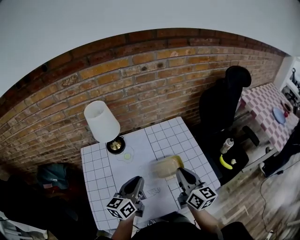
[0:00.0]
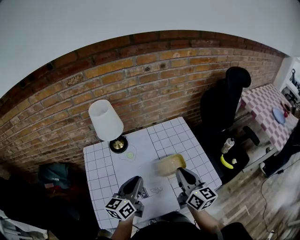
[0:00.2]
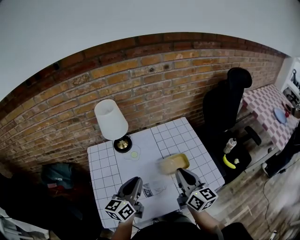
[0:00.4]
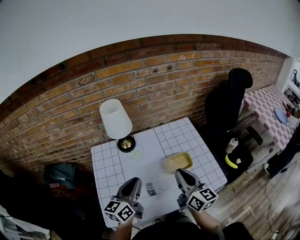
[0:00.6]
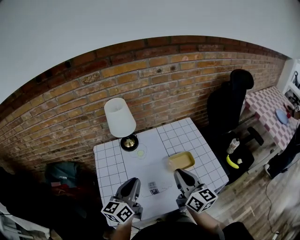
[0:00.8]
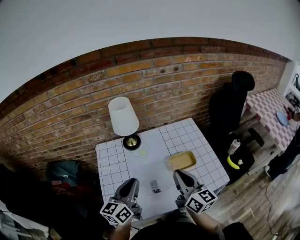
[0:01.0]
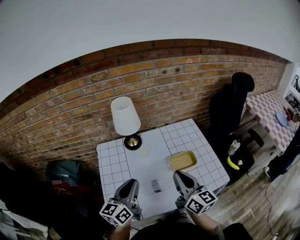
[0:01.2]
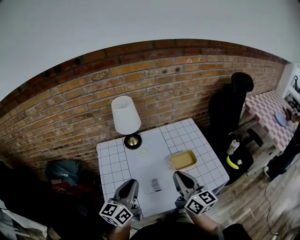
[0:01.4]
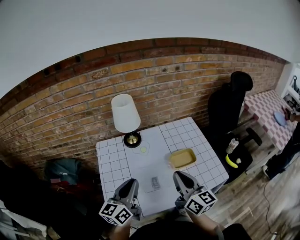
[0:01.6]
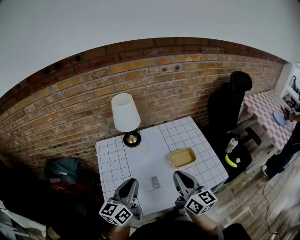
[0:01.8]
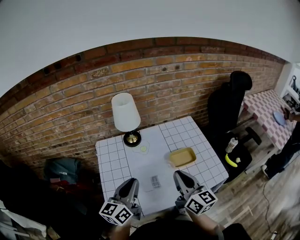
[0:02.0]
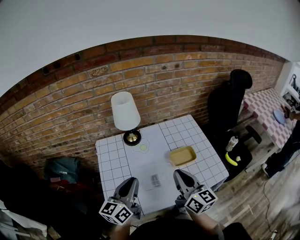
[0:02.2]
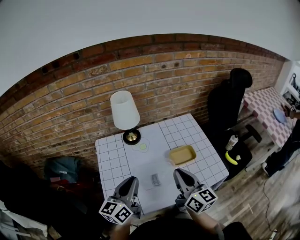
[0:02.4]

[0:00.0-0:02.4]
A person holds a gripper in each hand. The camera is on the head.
0:00.0 to 0:01.2: The left gripper travels to the left, backward and upward by about 15 cm; the right gripper is displaced to the left and backward by some 15 cm.
0:01.2 to 0:02.4: The grippers move only a little.

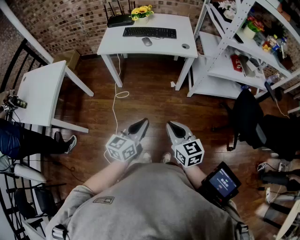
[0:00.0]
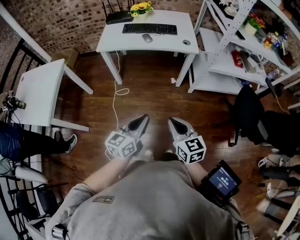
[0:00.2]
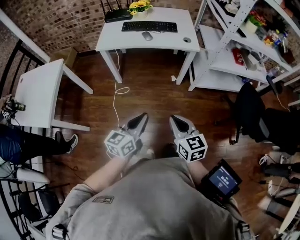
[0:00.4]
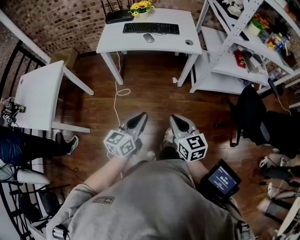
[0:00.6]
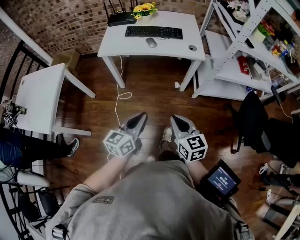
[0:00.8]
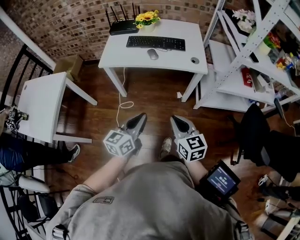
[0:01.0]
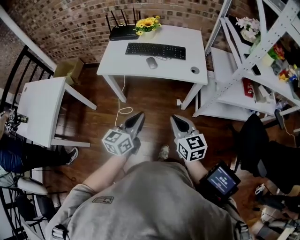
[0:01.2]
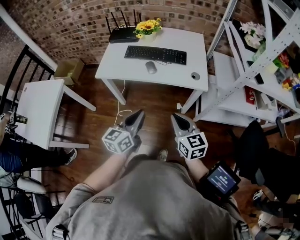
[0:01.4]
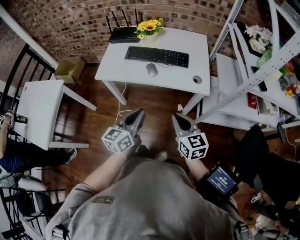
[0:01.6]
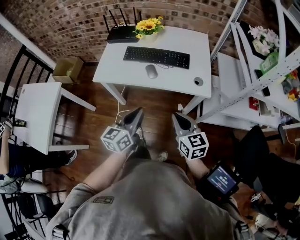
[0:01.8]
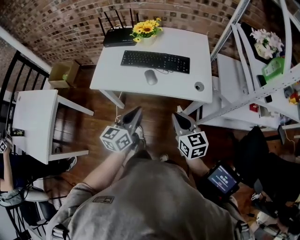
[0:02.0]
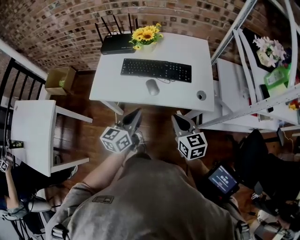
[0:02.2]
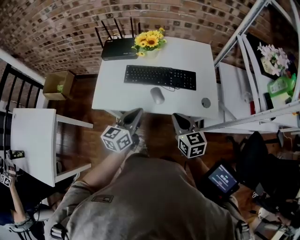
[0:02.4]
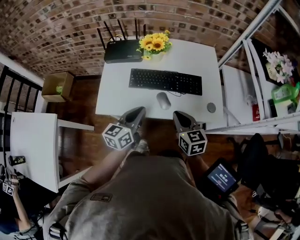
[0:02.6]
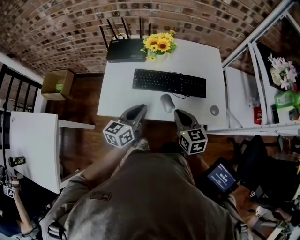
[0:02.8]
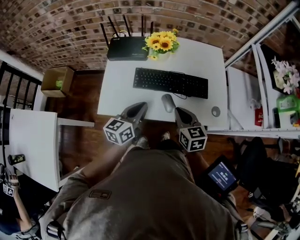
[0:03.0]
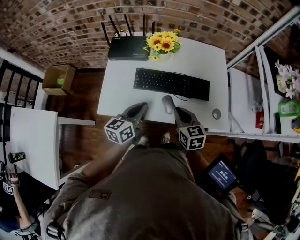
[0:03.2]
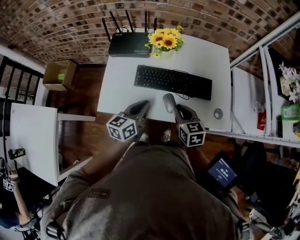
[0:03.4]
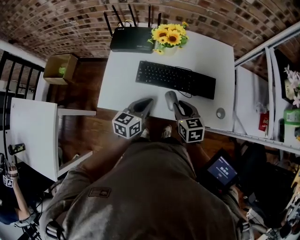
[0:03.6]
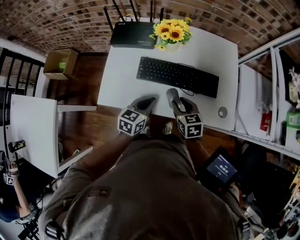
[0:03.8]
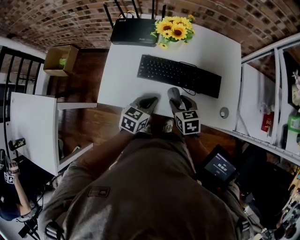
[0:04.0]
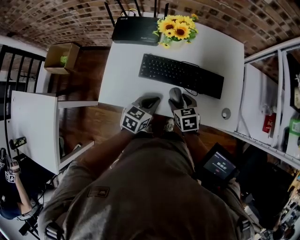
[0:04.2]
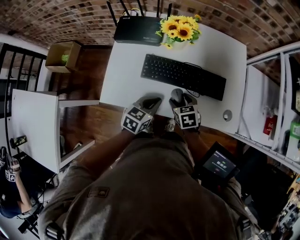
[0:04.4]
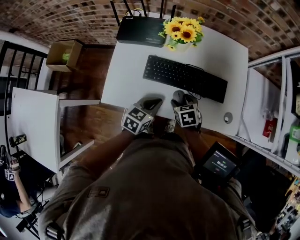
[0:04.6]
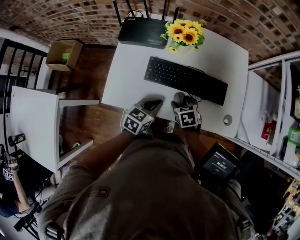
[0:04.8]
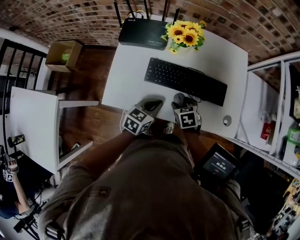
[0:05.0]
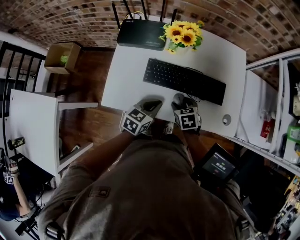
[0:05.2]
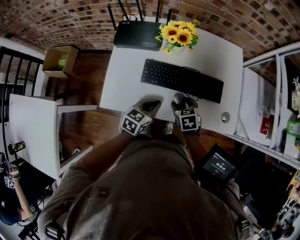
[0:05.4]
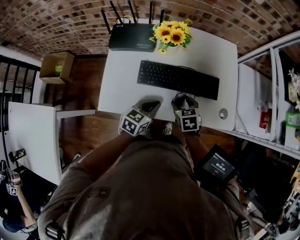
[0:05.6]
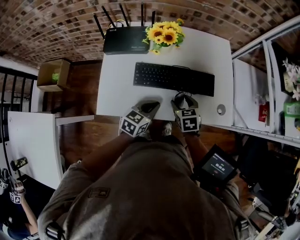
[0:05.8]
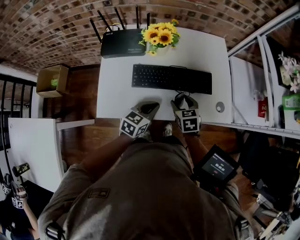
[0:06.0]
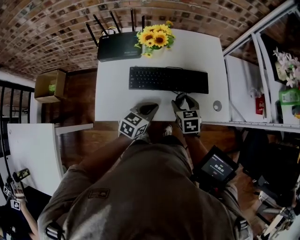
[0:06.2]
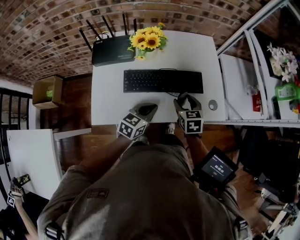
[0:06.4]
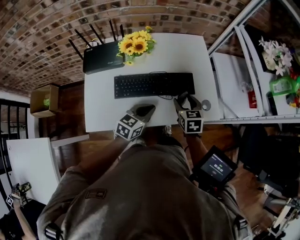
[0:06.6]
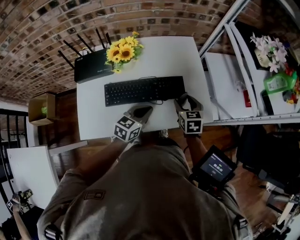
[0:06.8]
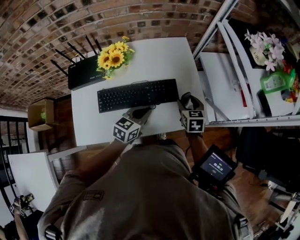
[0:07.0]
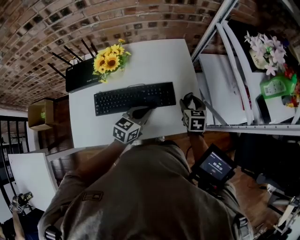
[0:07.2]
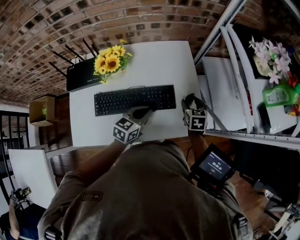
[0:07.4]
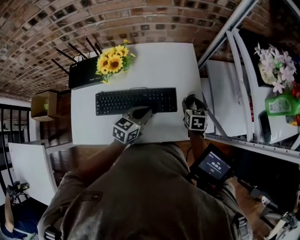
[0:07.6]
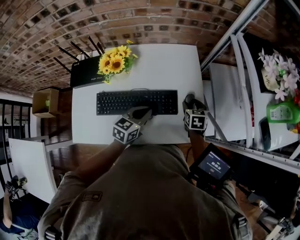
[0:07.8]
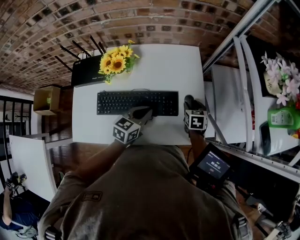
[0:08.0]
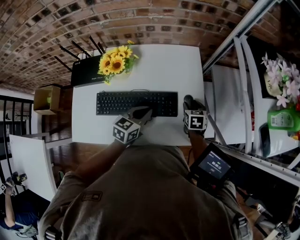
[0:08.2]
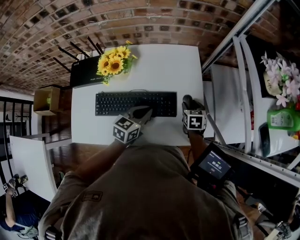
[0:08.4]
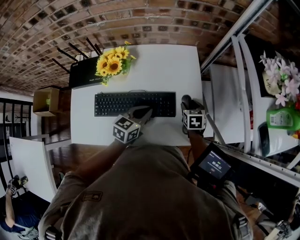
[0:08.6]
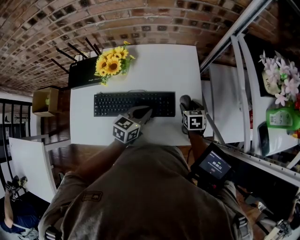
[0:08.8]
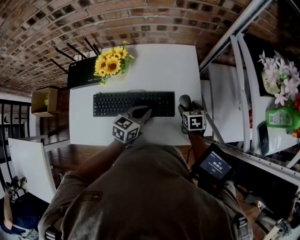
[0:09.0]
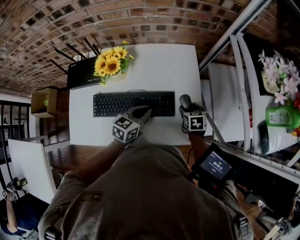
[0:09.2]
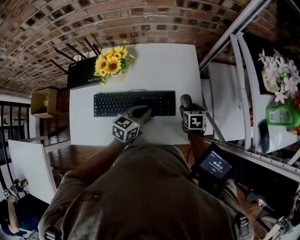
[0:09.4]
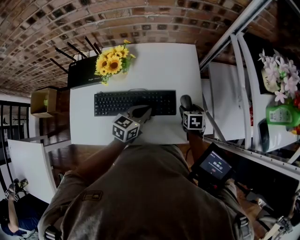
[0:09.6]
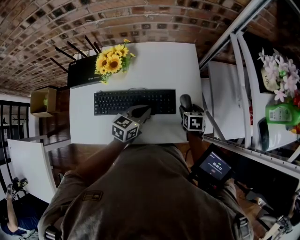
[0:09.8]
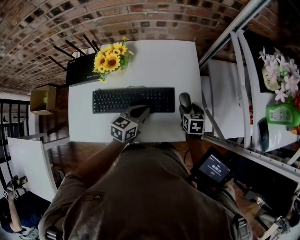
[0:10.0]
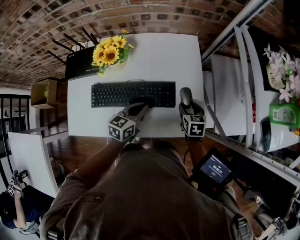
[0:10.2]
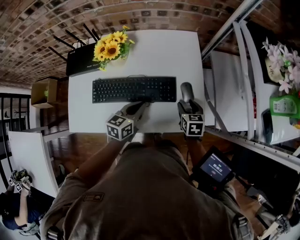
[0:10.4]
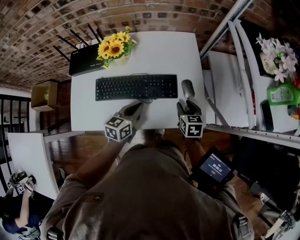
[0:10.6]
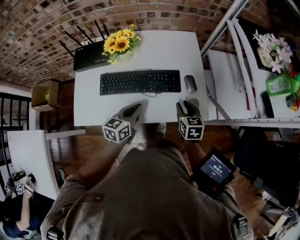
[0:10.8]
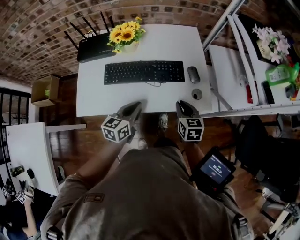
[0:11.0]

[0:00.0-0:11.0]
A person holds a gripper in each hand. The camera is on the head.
0:00.0 to 0:01.6: The grippers both shift forward by approximately 30 cm.
0:01.6 to 0:03.2: Both grippers move forward and to the left, approximately 30 cm.
0:03.2 to 0:04.8: Both grippers move downward, approximately 10 cm. The right gripper changes its angle by about 30 degrees, and opens up; the left gripper rotates some 30 degrees.
0:04.8 to 0:06.2: The right gripper shifts some 10 cm upward and to the right, and swivels about 20 degrees.
0:06.2 to 0:07.8: Both grippers travel together forward and to the right, about 25 cm.
0:07.8 to 0:09.4: The grippers make only small movements.
0:09.4 to 0:11.0: The left gripper goes about 15 cm backward. The right gripper moves backward and upward, approximately 20 cm, rotates approximately 20 degrees, and closes its fingers.

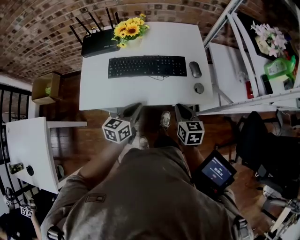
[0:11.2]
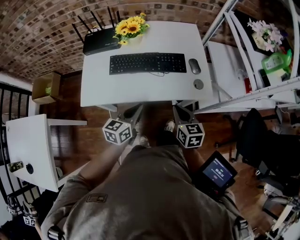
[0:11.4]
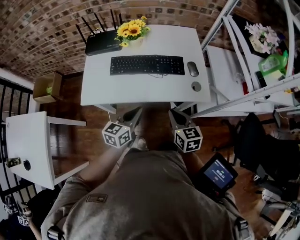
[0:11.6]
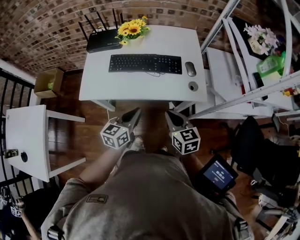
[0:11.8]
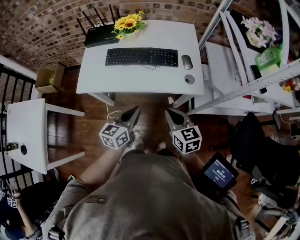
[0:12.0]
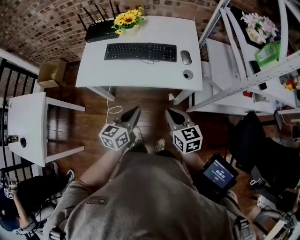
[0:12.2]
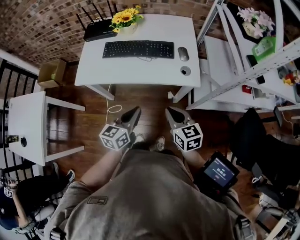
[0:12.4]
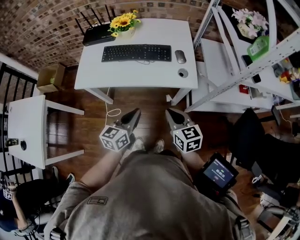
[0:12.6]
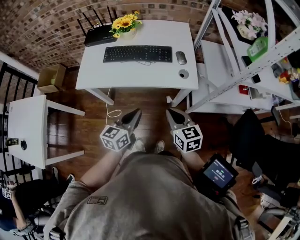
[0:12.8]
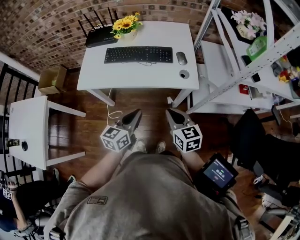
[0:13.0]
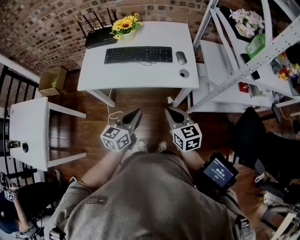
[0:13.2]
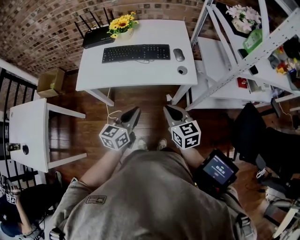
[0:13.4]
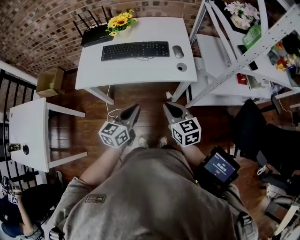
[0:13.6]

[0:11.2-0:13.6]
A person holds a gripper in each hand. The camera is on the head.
0:11.2 to 0:12.4: The right gripper travels backward by approximately 15 cm, and changes its angle by roughly 20 degrees; the left gripper shifts roughly 15 cm backward and to the right.
0:12.4 to 0:13.6: The grippers stay close to where they were, moving slightly.

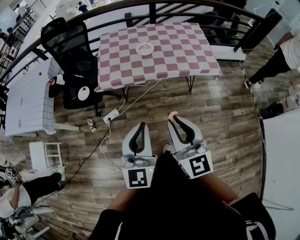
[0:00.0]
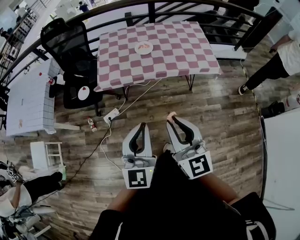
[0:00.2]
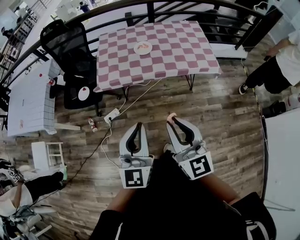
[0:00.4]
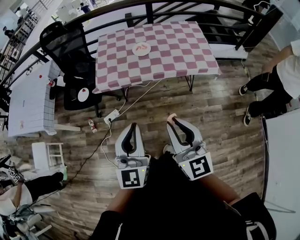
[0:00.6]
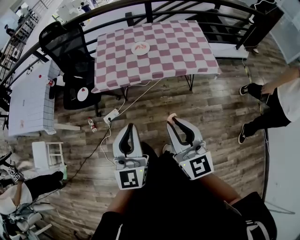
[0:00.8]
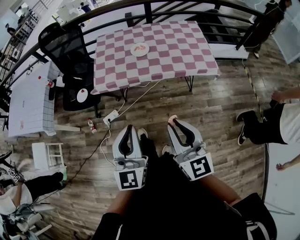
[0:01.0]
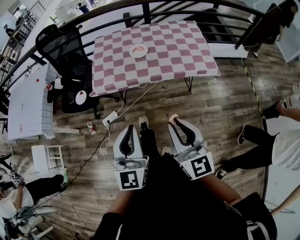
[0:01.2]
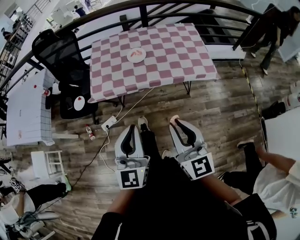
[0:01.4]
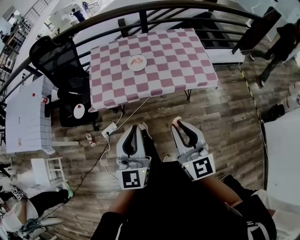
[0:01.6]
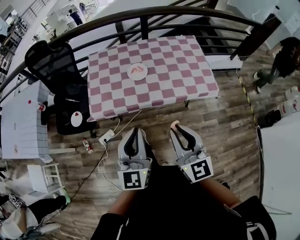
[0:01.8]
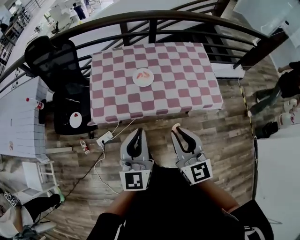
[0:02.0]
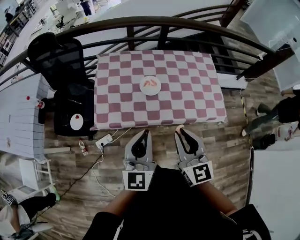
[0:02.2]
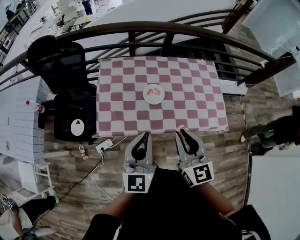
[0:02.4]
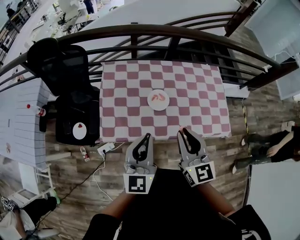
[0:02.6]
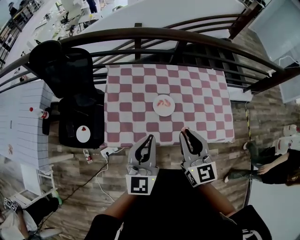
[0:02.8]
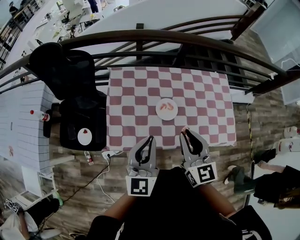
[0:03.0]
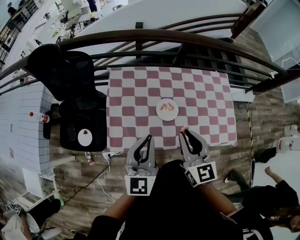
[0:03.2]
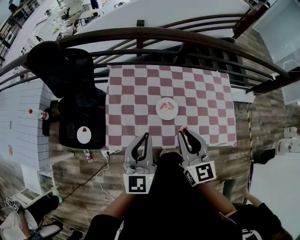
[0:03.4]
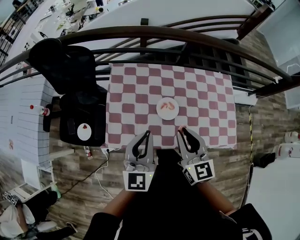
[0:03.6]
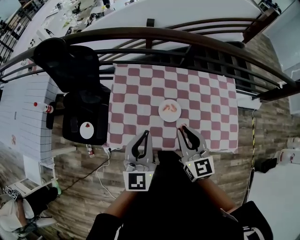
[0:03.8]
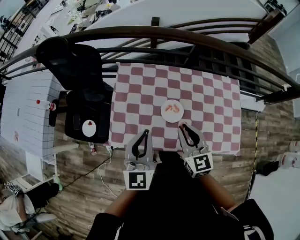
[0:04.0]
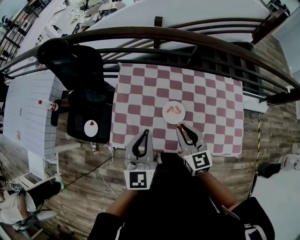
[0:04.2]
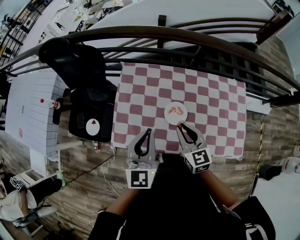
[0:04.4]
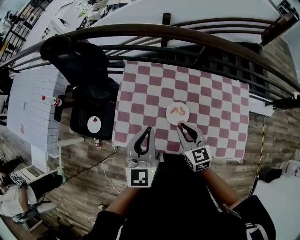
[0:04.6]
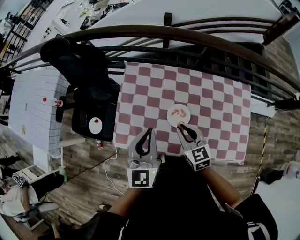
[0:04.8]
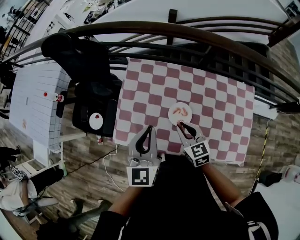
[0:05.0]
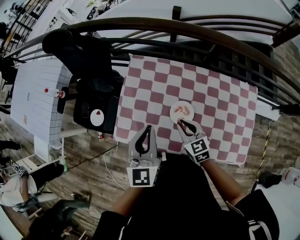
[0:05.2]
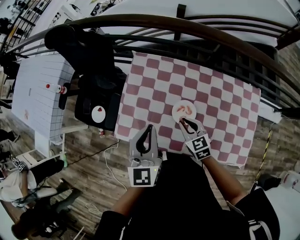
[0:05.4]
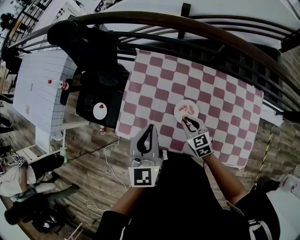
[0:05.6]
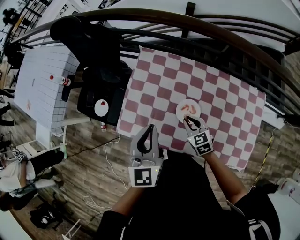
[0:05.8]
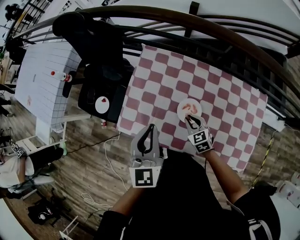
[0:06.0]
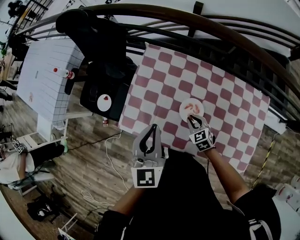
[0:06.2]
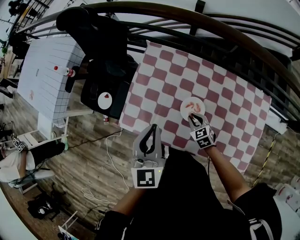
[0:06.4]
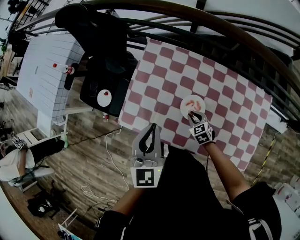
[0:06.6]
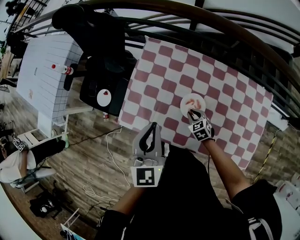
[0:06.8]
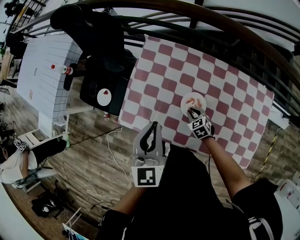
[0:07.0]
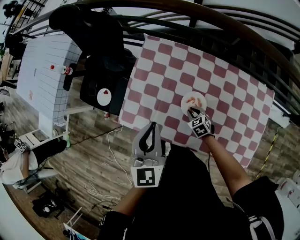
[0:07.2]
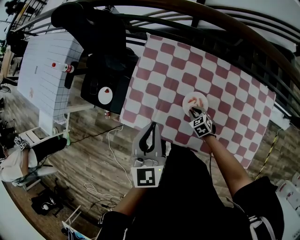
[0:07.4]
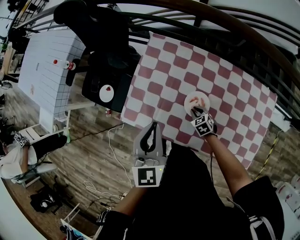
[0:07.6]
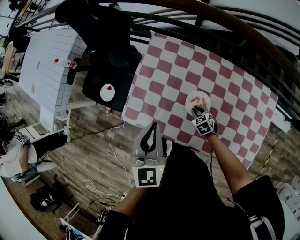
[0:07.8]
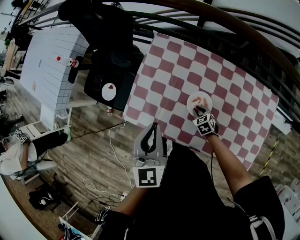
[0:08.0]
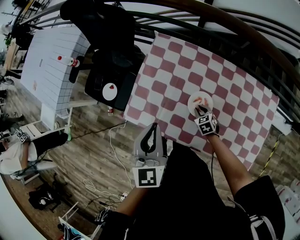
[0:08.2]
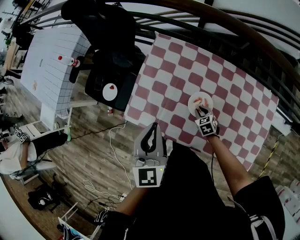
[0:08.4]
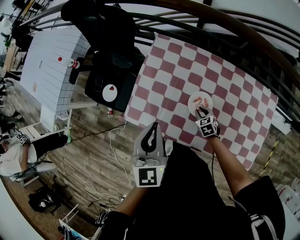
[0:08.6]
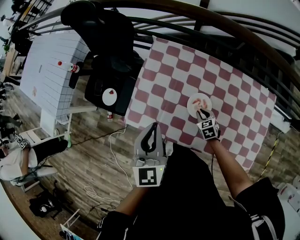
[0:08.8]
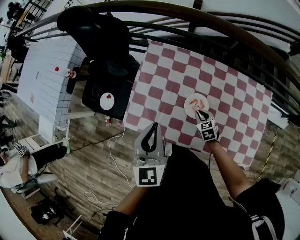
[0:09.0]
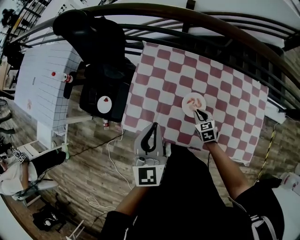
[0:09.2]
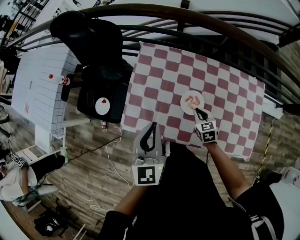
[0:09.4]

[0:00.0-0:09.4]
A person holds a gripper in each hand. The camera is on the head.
0:00.0 to 0:01.6: The left gripper shifts some 15 cm forward, while the right gripper is displaced forward and to the right by some 15 cm.
0:01.6 to 0:03.2: Both grippers move forward, some 40 cm.
0:03.2 to 0:04.8: The left gripper travels forward by about 10 cm; the right gripper goes approximately 15 cm downward and forward, and changes its angle by about 30 degrees.
0:04.8 to 0:06.2: The right gripper is displaced downward by roughly 15 cm, and turns by some 30 degrees.
0:06.2 to 0:07.8: The right gripper moves downward, approximately 10 cm.
0:07.8 to 0:09.4: The right gripper travels upward by approximately 10 cm, and swivels roughly 30 degrees.
